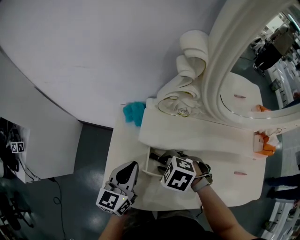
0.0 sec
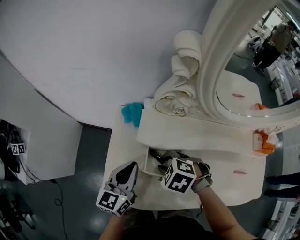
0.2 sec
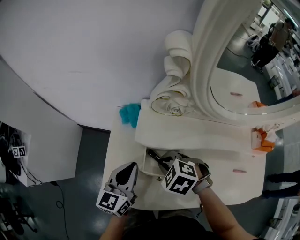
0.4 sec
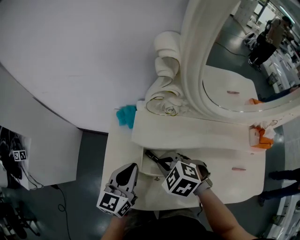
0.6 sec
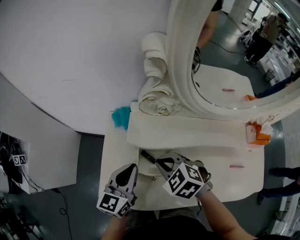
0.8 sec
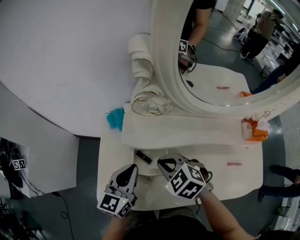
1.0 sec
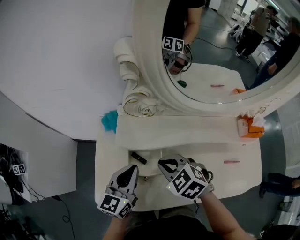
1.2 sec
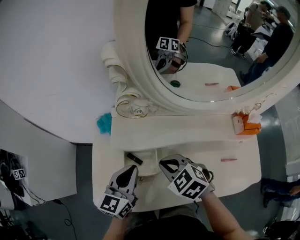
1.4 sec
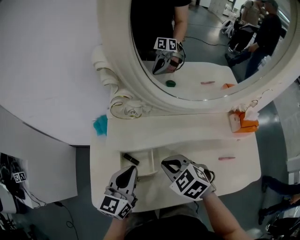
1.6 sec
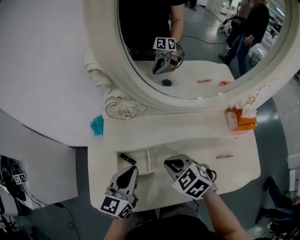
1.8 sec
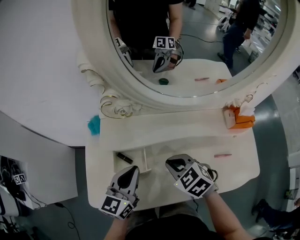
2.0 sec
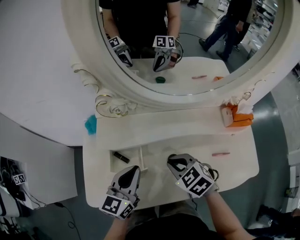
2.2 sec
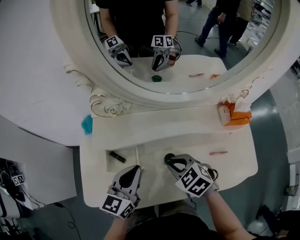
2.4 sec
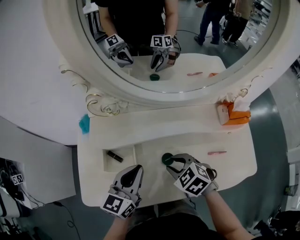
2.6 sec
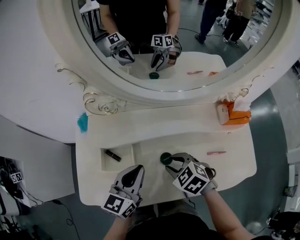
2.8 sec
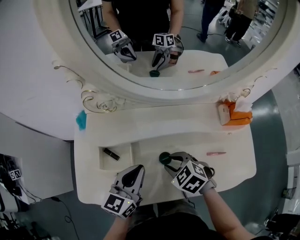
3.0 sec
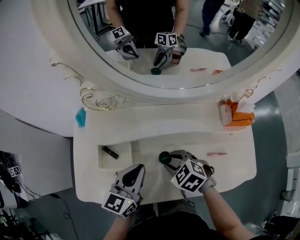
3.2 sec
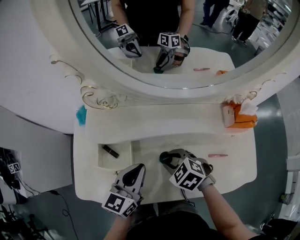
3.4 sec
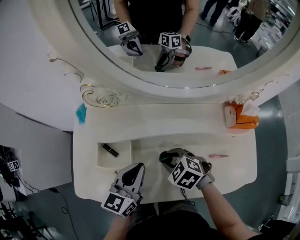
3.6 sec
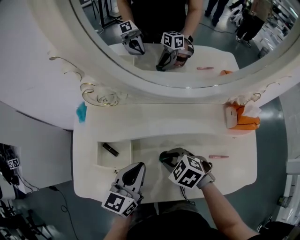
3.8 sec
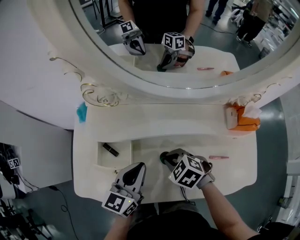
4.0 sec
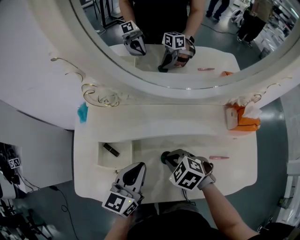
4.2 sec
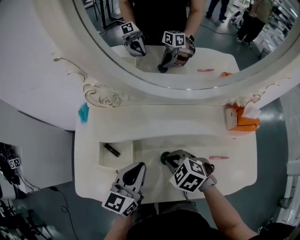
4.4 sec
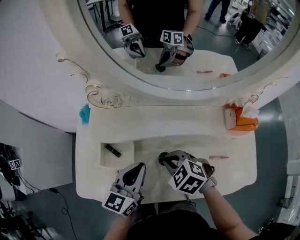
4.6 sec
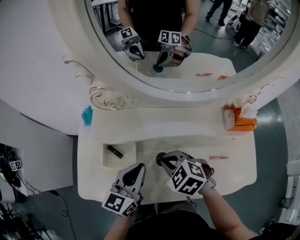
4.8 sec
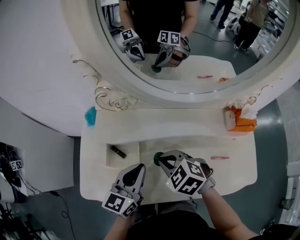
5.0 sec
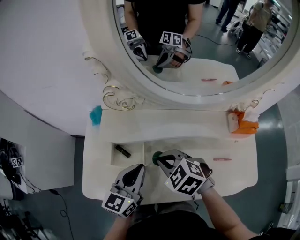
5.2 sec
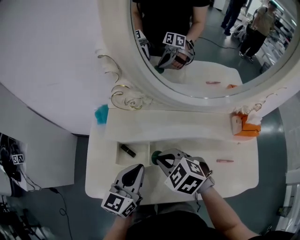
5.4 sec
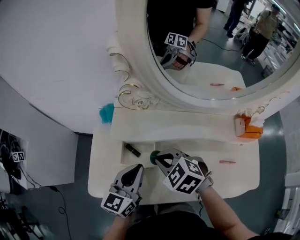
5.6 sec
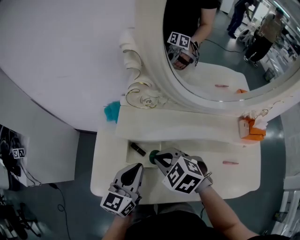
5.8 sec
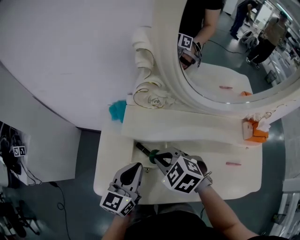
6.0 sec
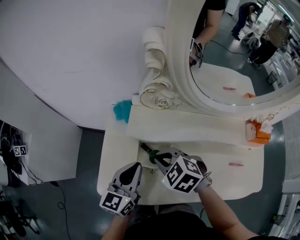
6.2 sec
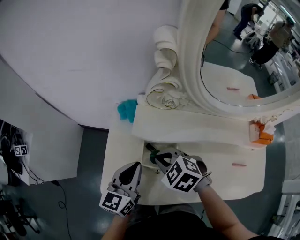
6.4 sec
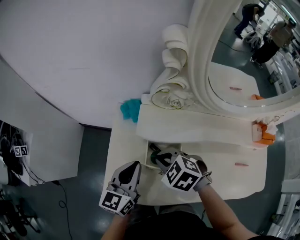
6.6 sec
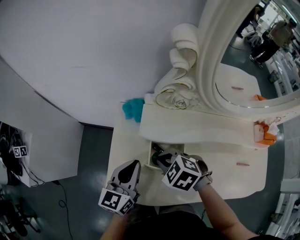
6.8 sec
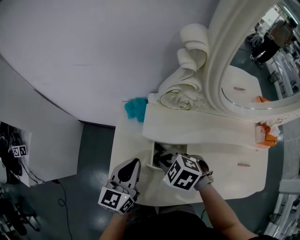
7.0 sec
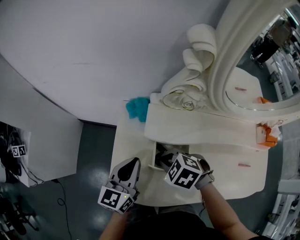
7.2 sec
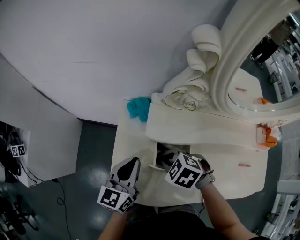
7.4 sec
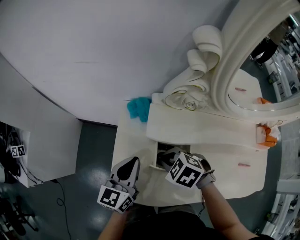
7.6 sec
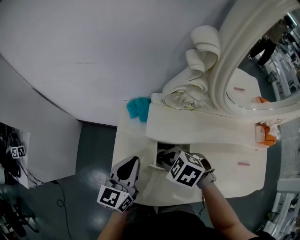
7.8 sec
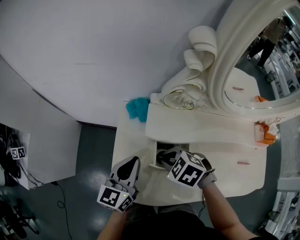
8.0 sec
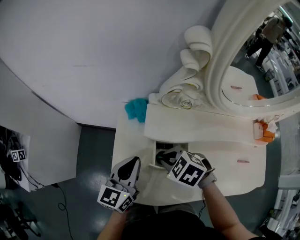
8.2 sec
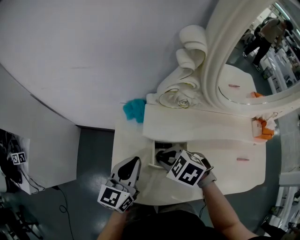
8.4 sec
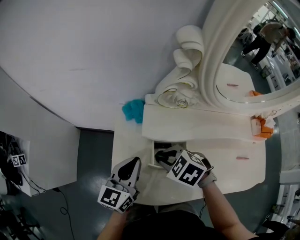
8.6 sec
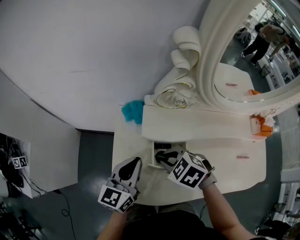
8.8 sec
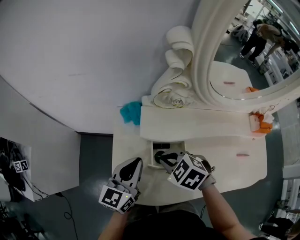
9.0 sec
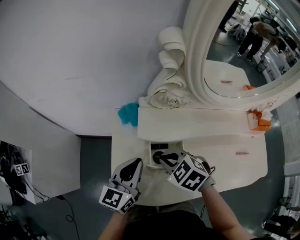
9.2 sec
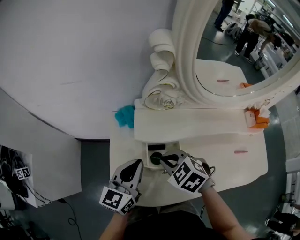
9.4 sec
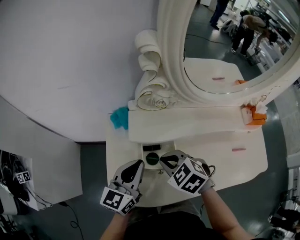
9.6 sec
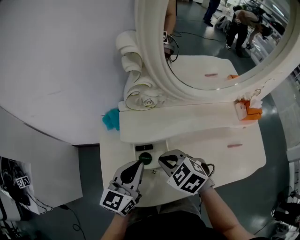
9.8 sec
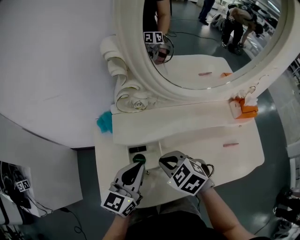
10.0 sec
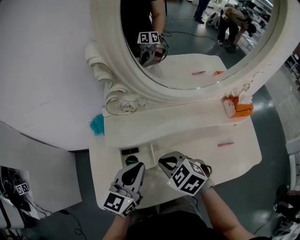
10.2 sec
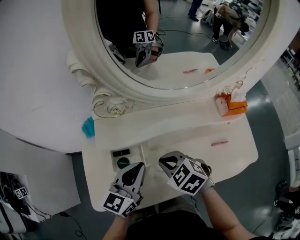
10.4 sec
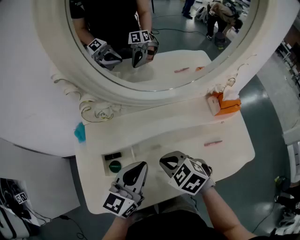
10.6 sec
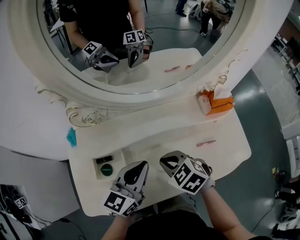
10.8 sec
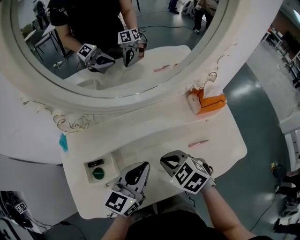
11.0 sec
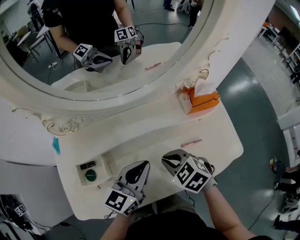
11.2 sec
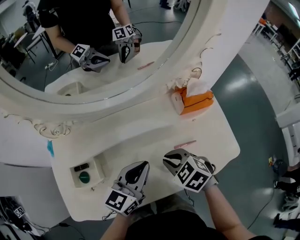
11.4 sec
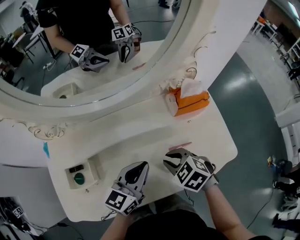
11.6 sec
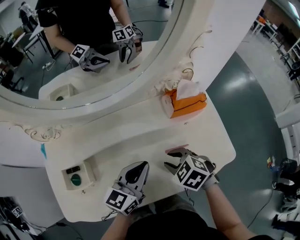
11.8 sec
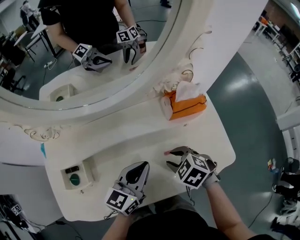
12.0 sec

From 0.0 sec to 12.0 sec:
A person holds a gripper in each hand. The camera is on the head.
From 0.0 sec to 1.6 sec: The right gripper moves to the right and upward, roughly 15 cm, rotates some 30 degrees, and closes up. Meanwhile the left gripper shifts about 10 cm to the right.
From 1.6 sec to 3.0 sec: The right gripper shifts some 10 cm to the right and downward, and opens; the left gripper moves to the right, some 10 cm.
From 3.0 sec to 4.4 sec: The right gripper closes up.
From 4.4 sec to 6.0 sec: The right gripper moves to the left and upward, roughly 20 cm, while the left gripper travels to the left by roughly 15 cm.
From 6.0 sec to 7.6 sec: The right gripper is displaced downward and to the left by some 10 cm; the left gripper goes roughly 10 cm to the left and forward.
From 7.6 sec to 9.0 sec: The grippers stay close to where they were, moving slightly.
From 9.0 sec to 10.4 sec: The grippers both shift to the right by approximately 15 cm.
From 10.4 sec to 12.0 sec: Both grippers move to the right, approximately 25 cm. The right gripper opens up.

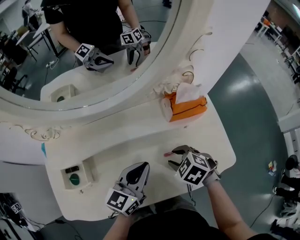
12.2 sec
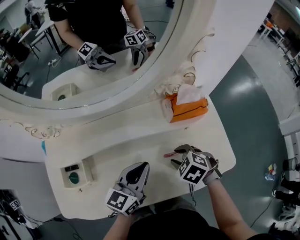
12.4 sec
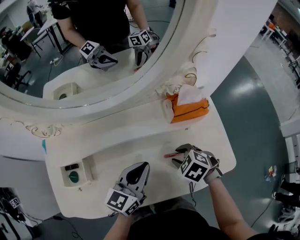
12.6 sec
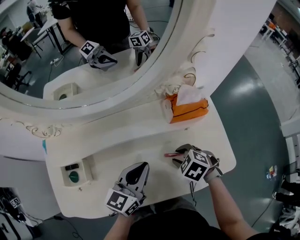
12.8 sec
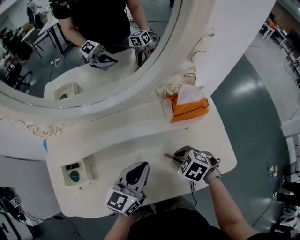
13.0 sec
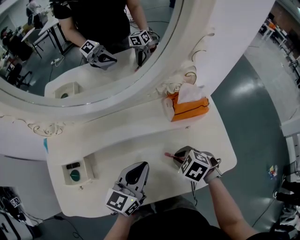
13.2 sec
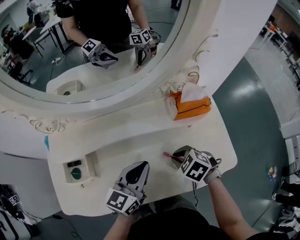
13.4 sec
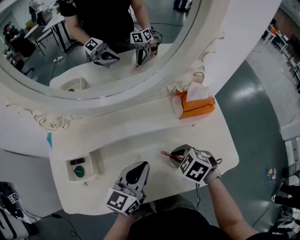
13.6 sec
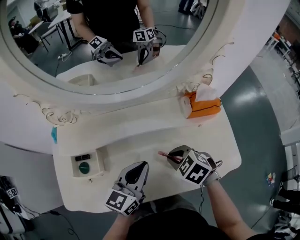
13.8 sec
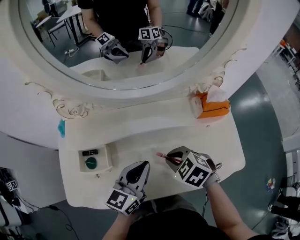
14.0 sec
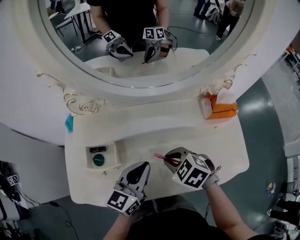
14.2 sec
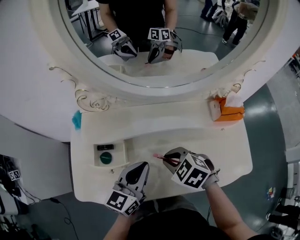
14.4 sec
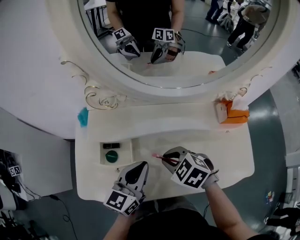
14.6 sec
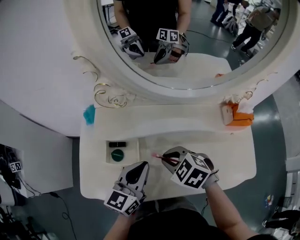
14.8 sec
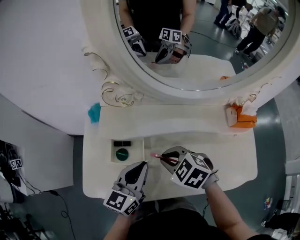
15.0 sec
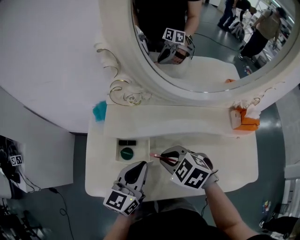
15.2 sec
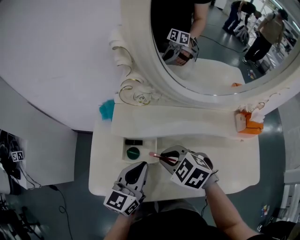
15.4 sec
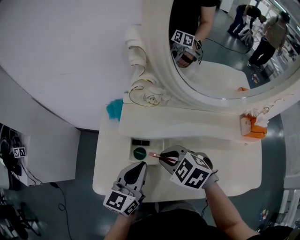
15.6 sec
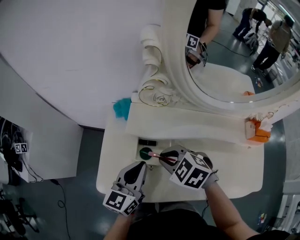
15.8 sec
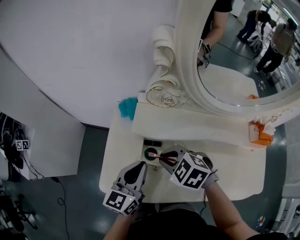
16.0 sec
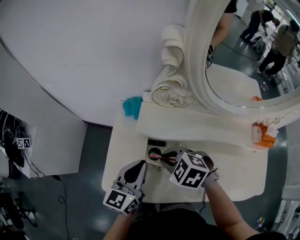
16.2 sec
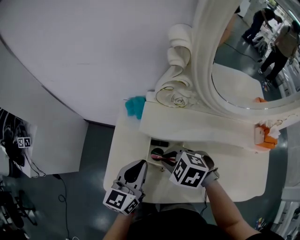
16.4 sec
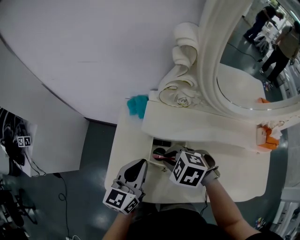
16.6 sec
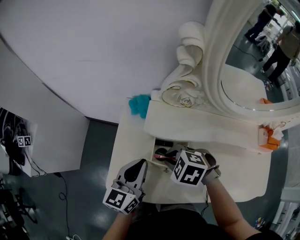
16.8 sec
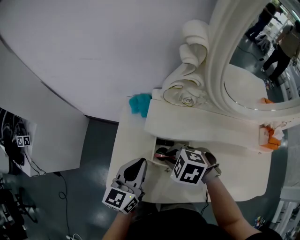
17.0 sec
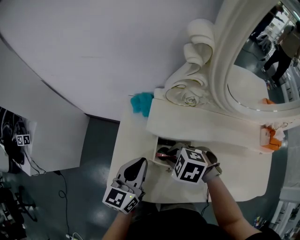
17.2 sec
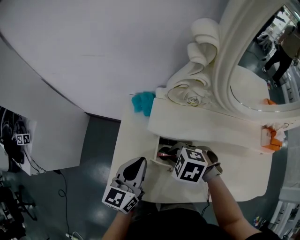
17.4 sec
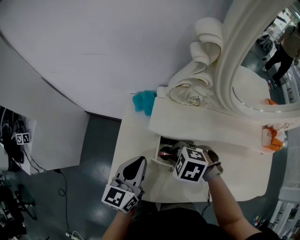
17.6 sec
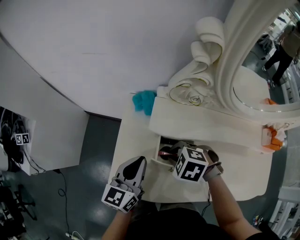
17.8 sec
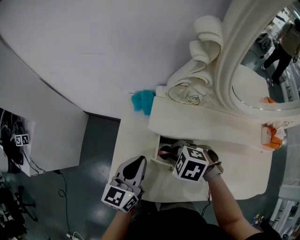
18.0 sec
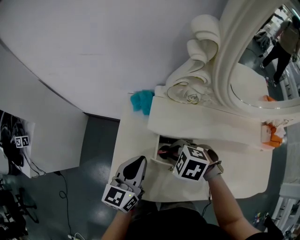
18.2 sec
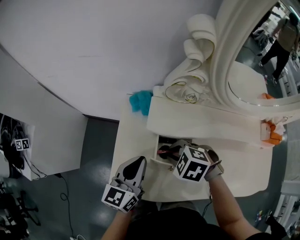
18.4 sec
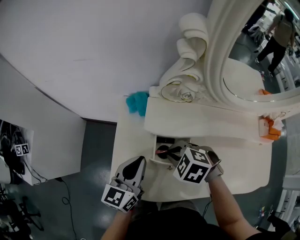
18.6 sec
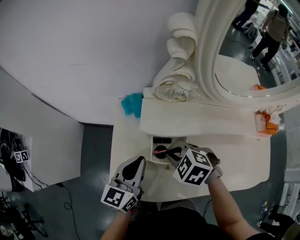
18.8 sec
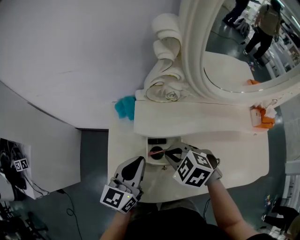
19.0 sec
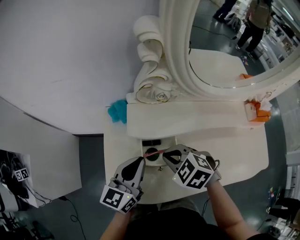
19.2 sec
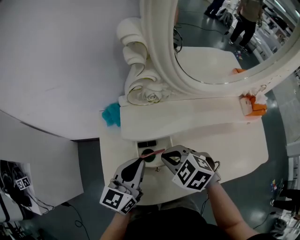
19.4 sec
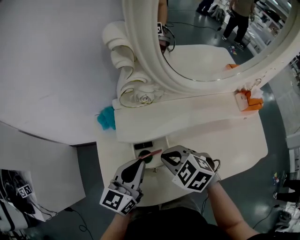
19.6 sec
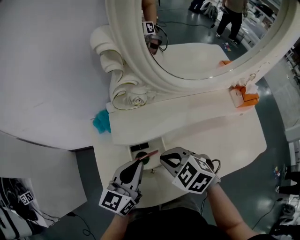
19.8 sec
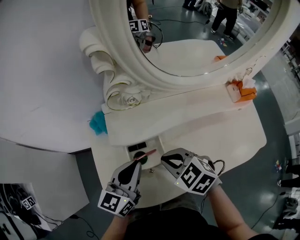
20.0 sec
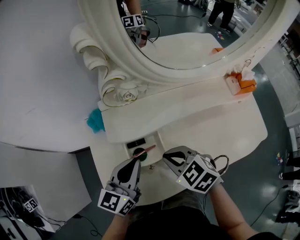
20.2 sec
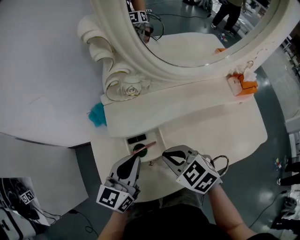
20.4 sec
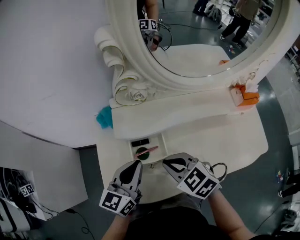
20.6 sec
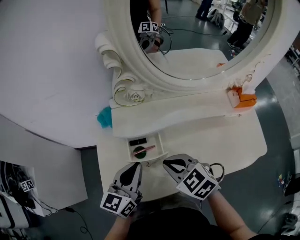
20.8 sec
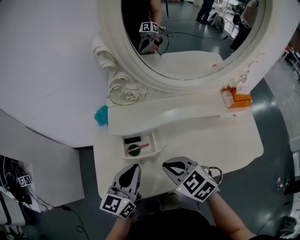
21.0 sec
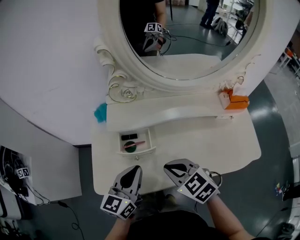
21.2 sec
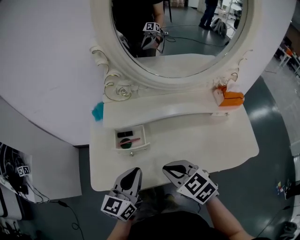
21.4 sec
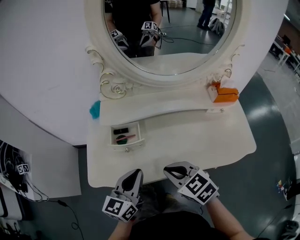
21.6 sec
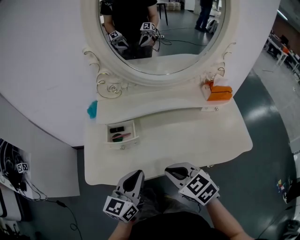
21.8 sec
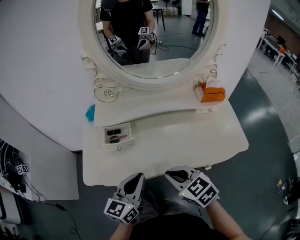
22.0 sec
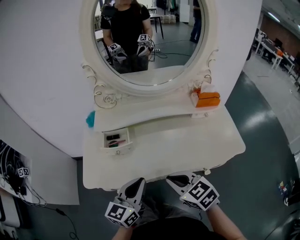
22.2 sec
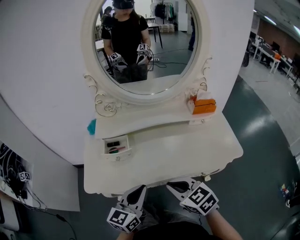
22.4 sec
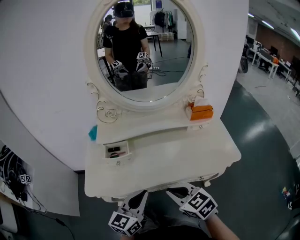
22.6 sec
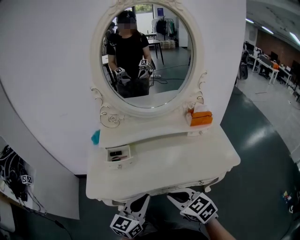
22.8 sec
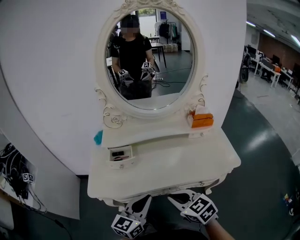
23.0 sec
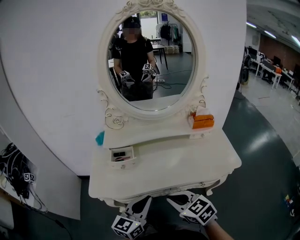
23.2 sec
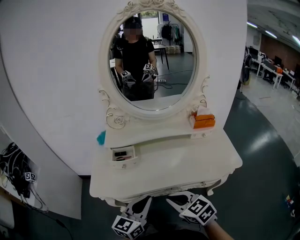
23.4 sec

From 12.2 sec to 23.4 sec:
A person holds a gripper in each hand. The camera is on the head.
From 12.2 sec to 13.8 sec: Both grippers travel together to the left, approximately 5 cm. The right gripper closes up.
From 13.8 sec to 15.4 sec: The grippers both shift to the left by roughly 25 cm. The right gripper changes its angle by about 20 degrees.
From 15.4 sec to 17.0 sec: The left gripper moves to the left and forward, roughly 15 cm. The right gripper goes approximately 10 cm to the left and downward, and turns by about 20 degrees.
From 17.0 sec to 18.6 sec: The grippers stay close to where they were, moving slightly.
From 18.6 sec to 20.2 sec: The left gripper changes place by approximately 10 cm, and rotates about 20 degrees. Meanwhile the right gripper shifts by roughly 10 cm, and swivels roughly 40 degrees.
From 20.2 sec to 21.8 sec: Both grippers travel together backward and to the right, about 20 cm.
From 21.8 sec to 23.4 sec: The grippers both shift backward by some 10 cm.

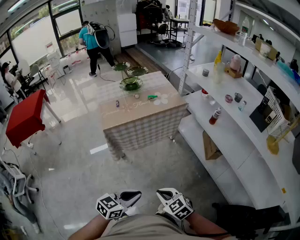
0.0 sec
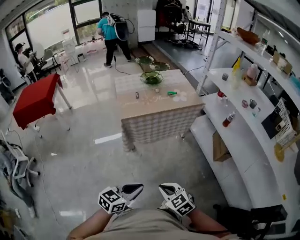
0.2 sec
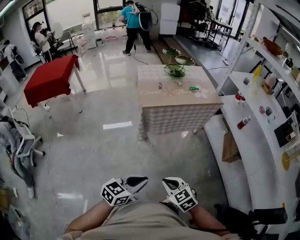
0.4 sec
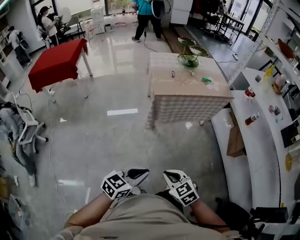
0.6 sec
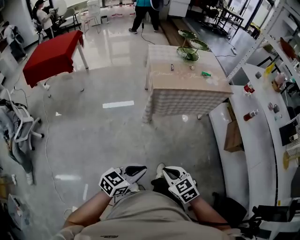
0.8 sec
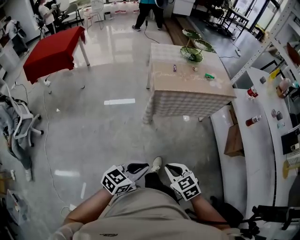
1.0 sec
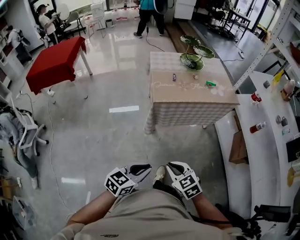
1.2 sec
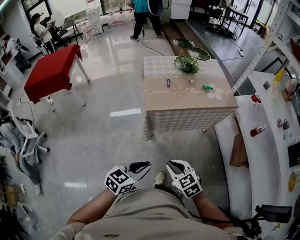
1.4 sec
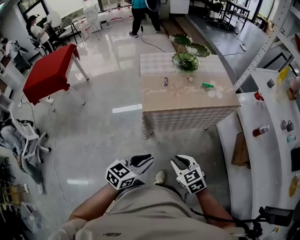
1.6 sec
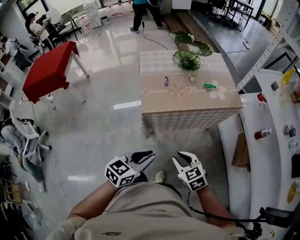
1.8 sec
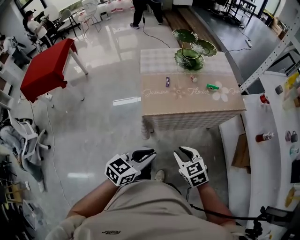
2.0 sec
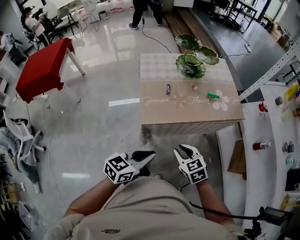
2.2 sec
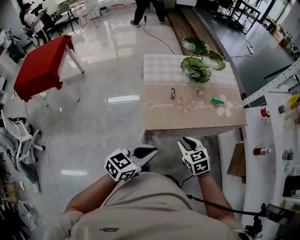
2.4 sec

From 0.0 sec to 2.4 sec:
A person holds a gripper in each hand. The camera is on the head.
From 0.0 sec to 1.2 sec: Both grippers move to the left, some 25 cm.
From 1.2 sec to 2.4 sec: Both grippers travel together forward, roughly 35 cm.
